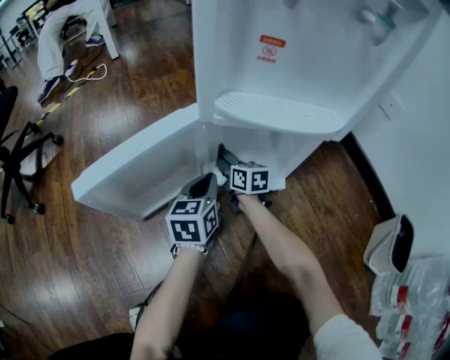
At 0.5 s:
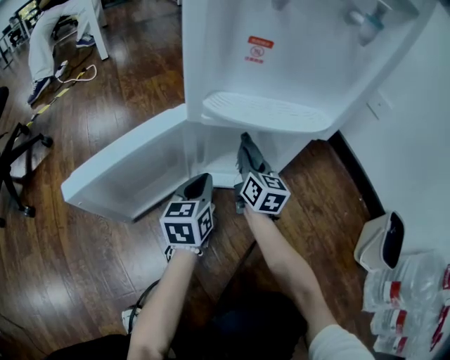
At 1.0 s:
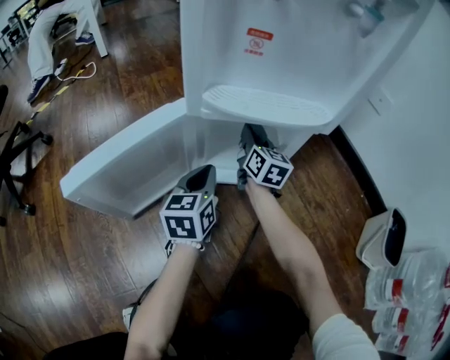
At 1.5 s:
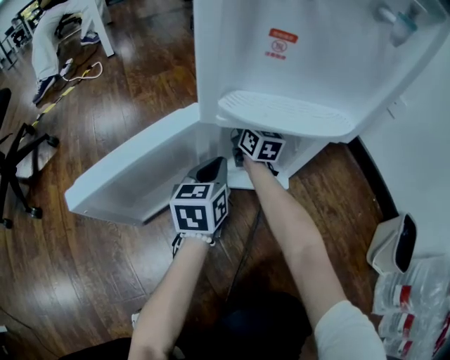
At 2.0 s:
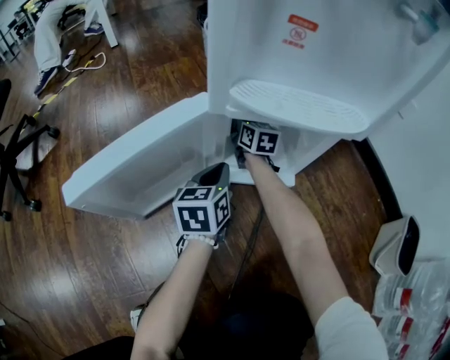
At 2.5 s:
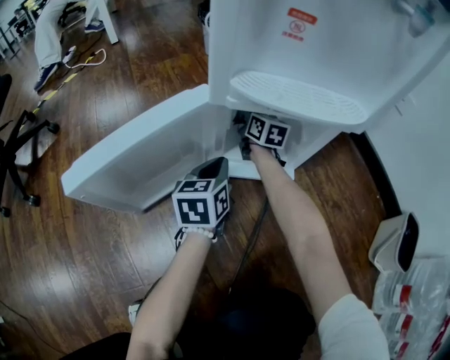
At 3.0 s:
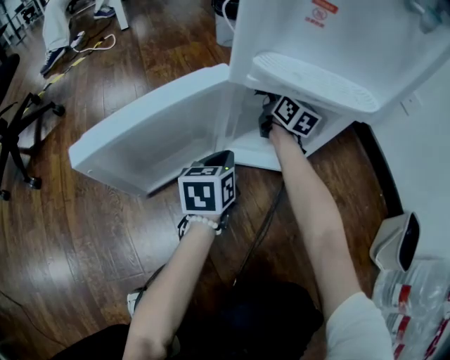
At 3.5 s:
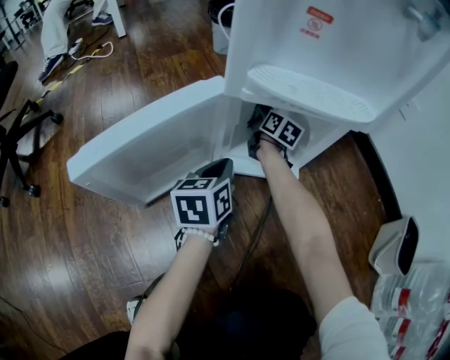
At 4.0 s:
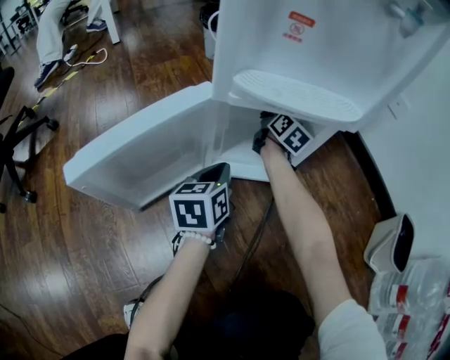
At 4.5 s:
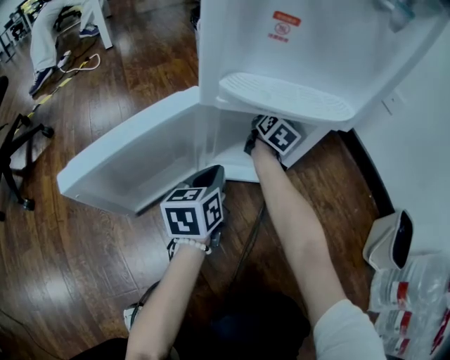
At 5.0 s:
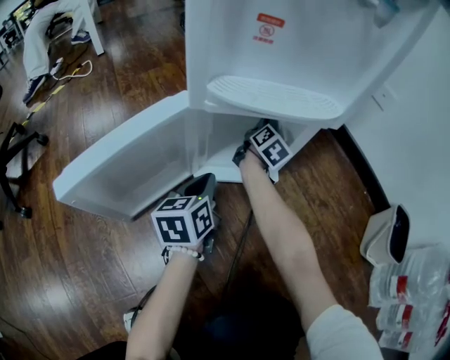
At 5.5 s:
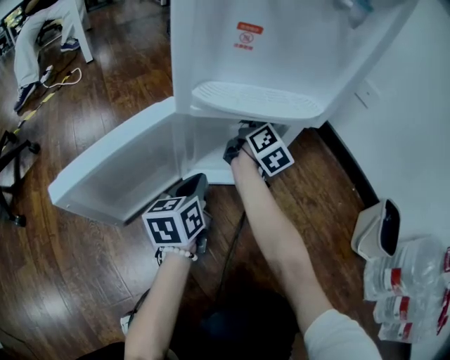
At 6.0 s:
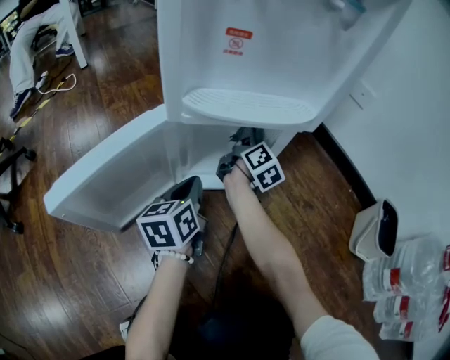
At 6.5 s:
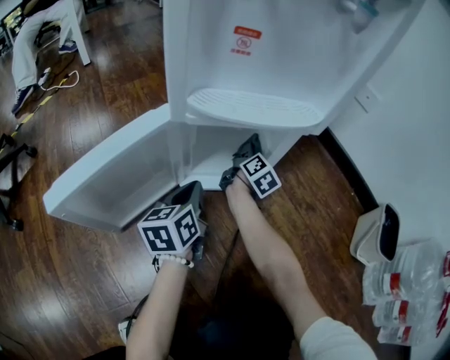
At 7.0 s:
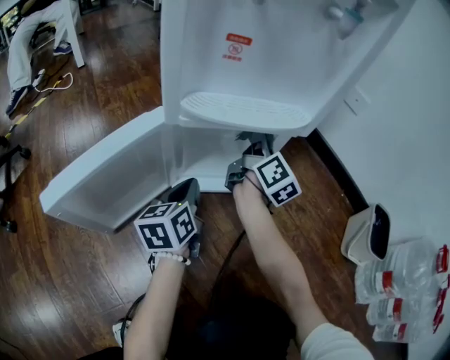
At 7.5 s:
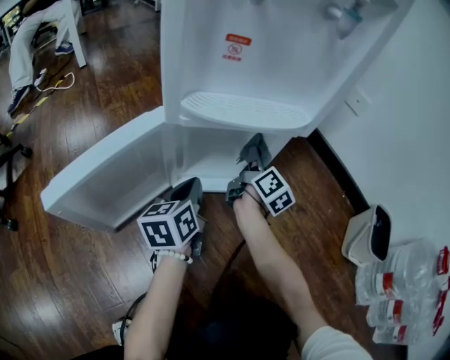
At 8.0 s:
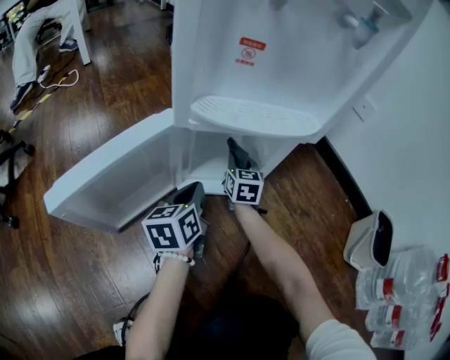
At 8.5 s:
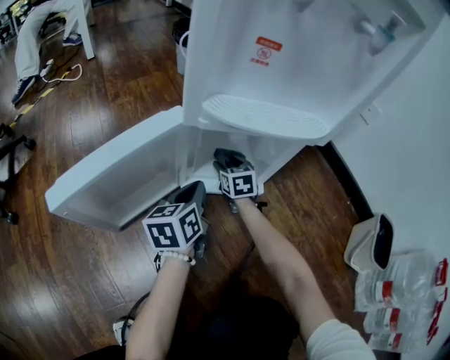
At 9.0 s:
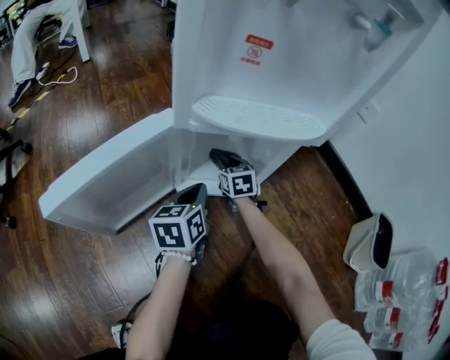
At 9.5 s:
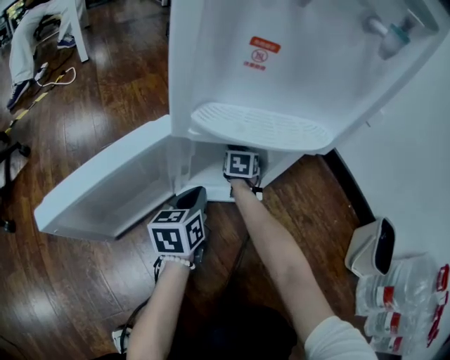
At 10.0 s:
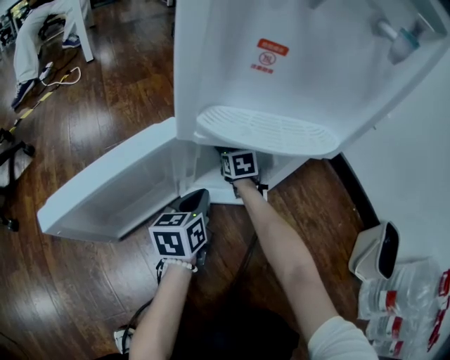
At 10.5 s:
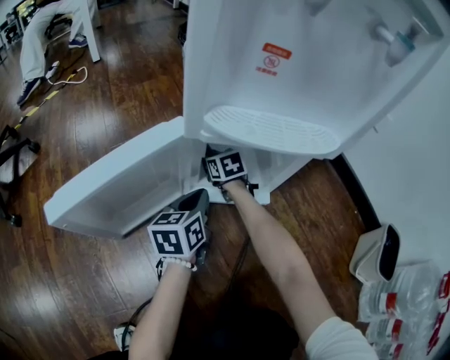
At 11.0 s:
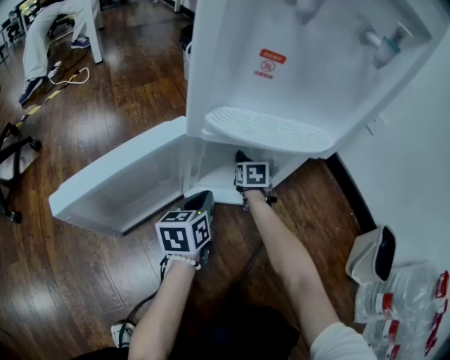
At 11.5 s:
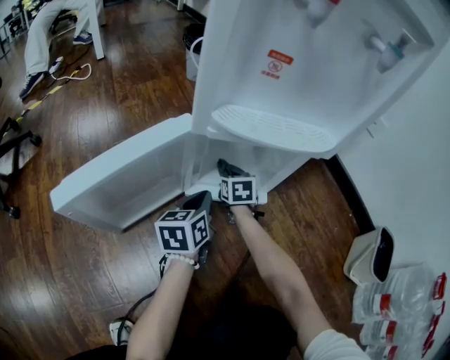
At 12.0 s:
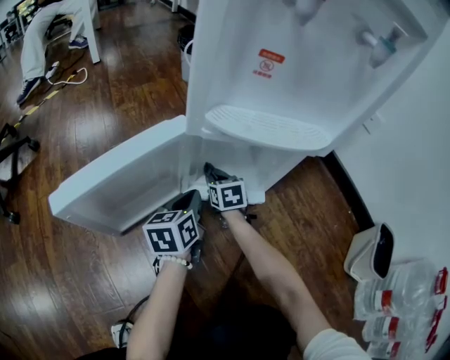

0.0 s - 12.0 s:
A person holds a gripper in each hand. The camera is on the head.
0.0 s - 2.0 s: The right gripper travels forward by about 15 cm.
2.0 s - 4.0 s: The right gripper goes about 15 cm to the right and upward, and swivels approximately 30 degrees.
4.0 s - 6.0 s: The right gripper goes up and down, approximately 10 cm each way, reversing 2 times, and rotates some 30 degrees.
6.0 s - 8.0 s: The right gripper moves up and down over about 20 cm, changing direction 2 times, and rolls counterclockwise, seen from behind, by some 50 degrees.
8.0 s - 10.0 s: The right gripper moves forward and to the left, about 10 cm, swivels roughly 20 degrees, and opens and closes again.
10.0 s - 12.0 s: The right gripper goes left and right, some 15 cm each way, reversing 2 times.

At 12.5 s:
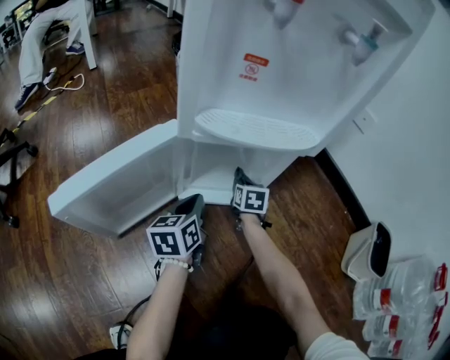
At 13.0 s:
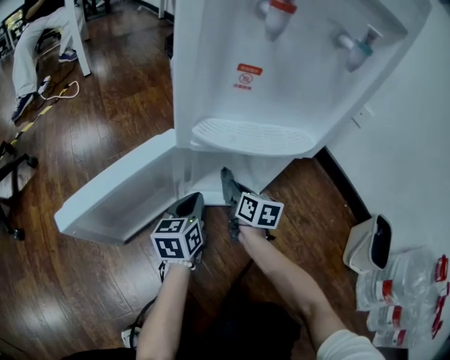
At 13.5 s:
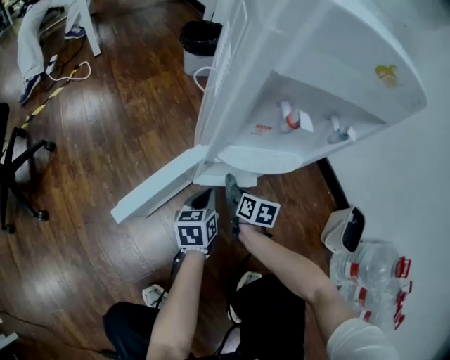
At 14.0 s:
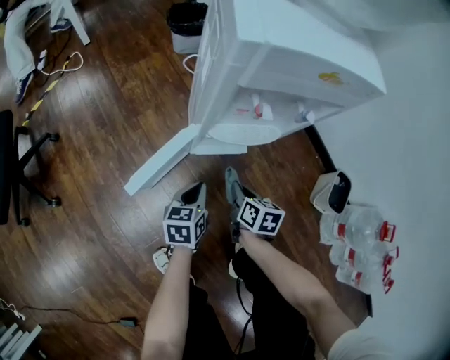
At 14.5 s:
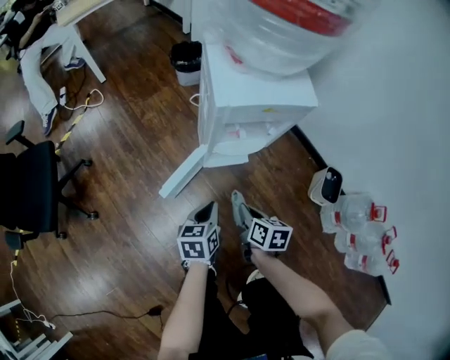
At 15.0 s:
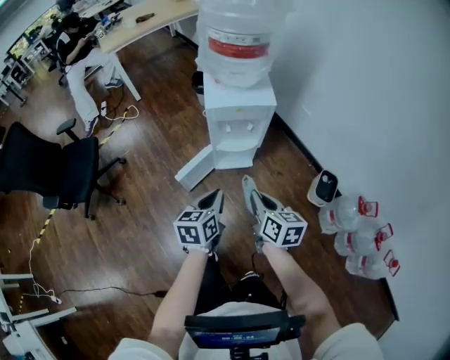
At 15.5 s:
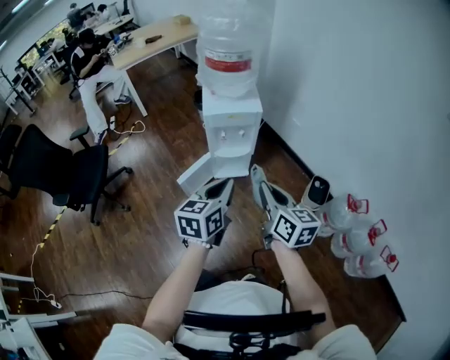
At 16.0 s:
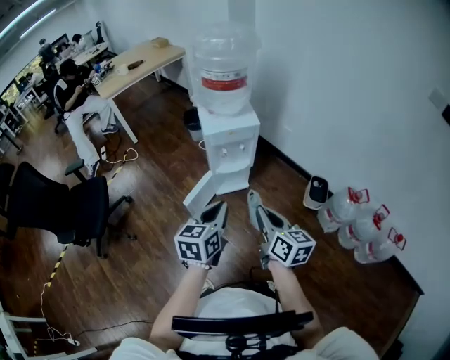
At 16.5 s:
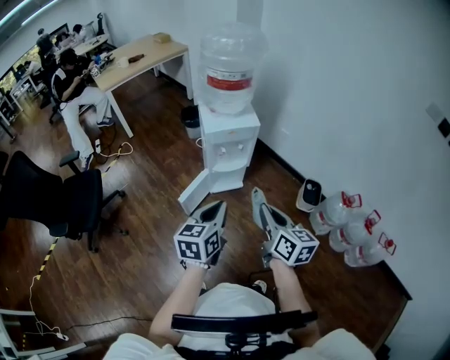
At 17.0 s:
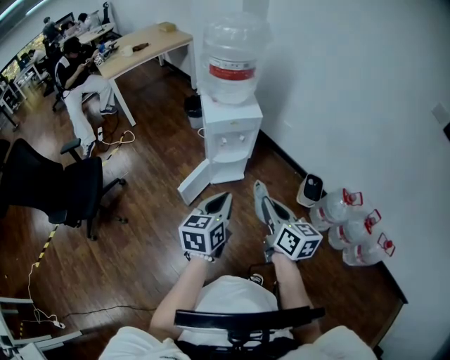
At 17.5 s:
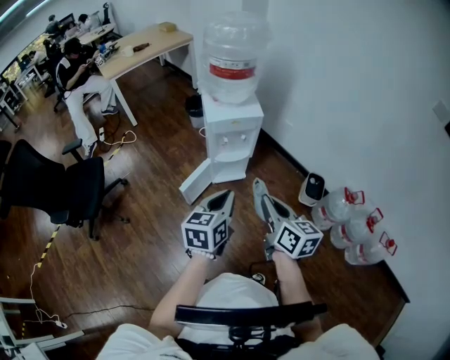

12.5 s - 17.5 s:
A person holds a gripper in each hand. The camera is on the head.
12.5 s - 15.0 s: Both grippers travel together upward and backward, some 80 cm. The right gripper turns by about 30 degrees.
15.0 s - 17.5 s: The grippers both shift upward and backward by some 20 cm.

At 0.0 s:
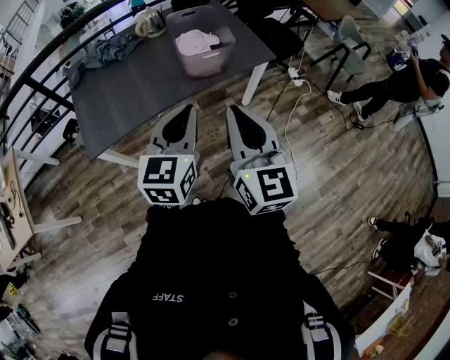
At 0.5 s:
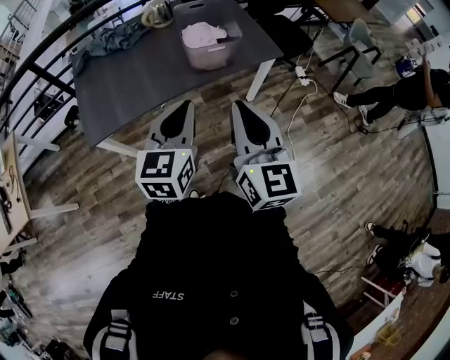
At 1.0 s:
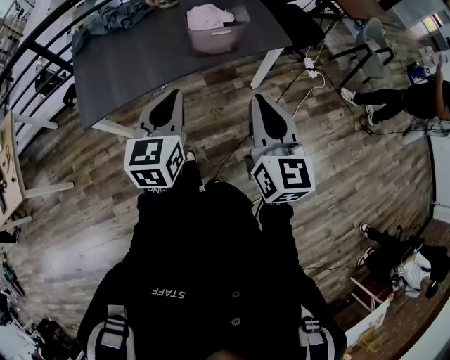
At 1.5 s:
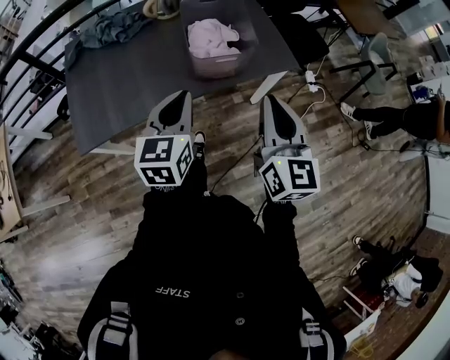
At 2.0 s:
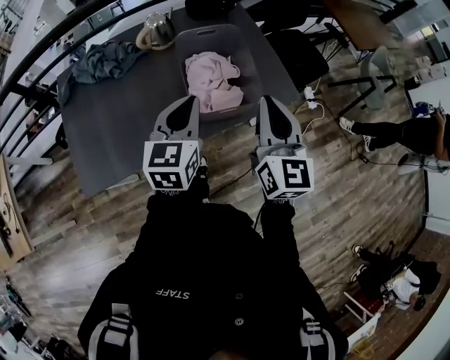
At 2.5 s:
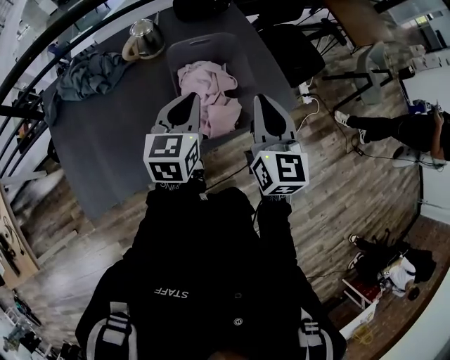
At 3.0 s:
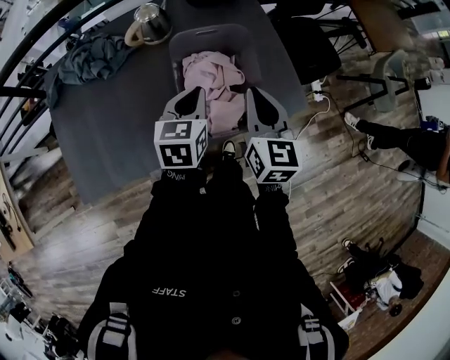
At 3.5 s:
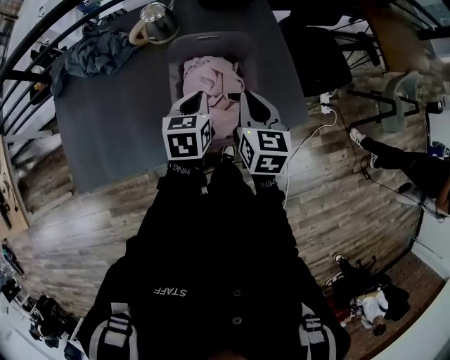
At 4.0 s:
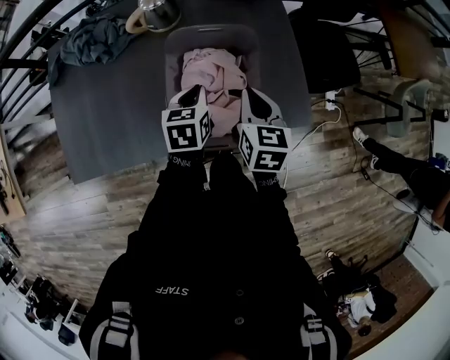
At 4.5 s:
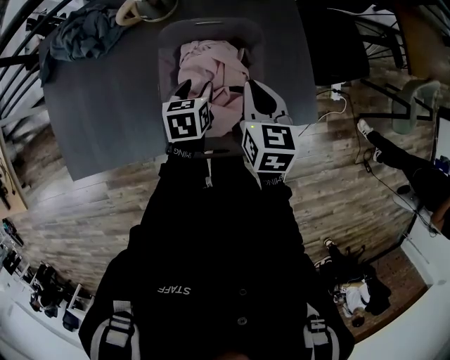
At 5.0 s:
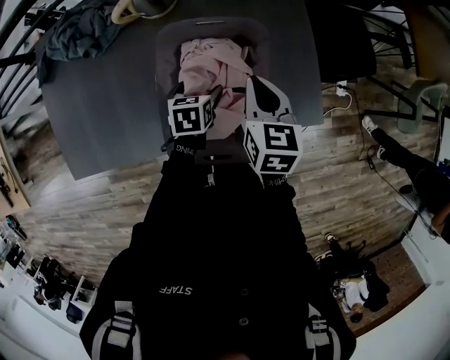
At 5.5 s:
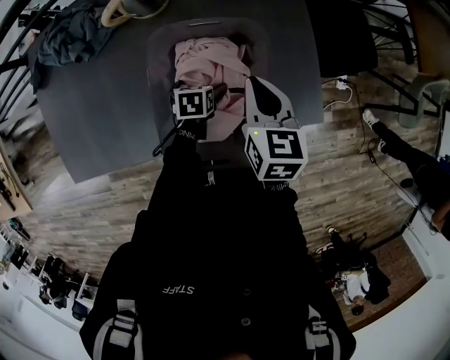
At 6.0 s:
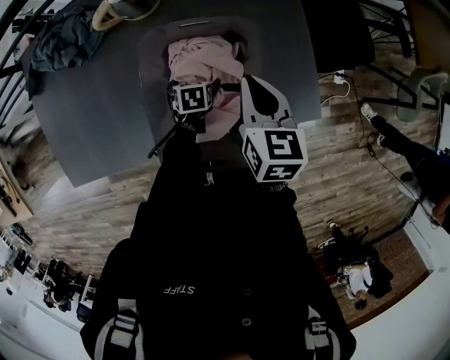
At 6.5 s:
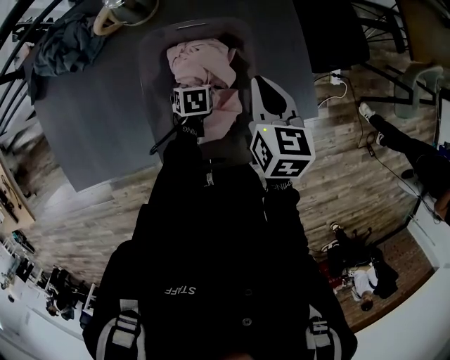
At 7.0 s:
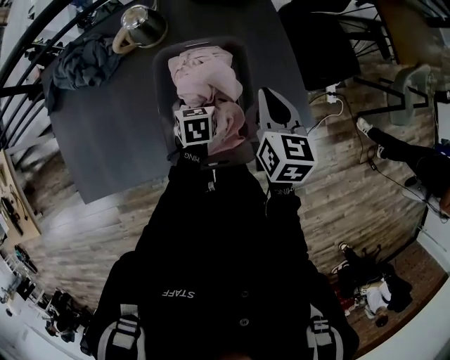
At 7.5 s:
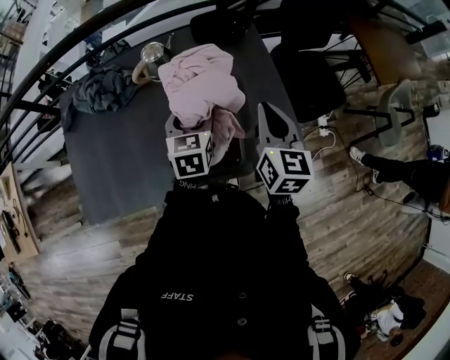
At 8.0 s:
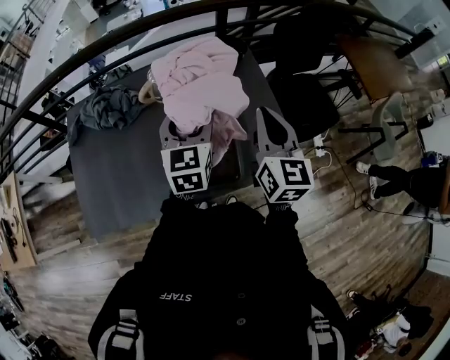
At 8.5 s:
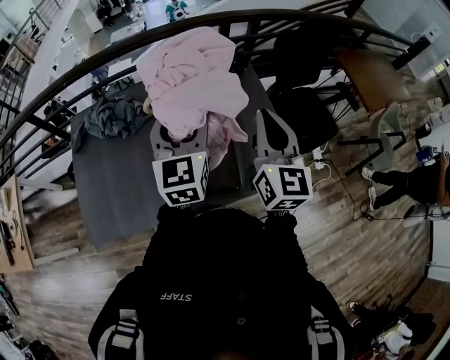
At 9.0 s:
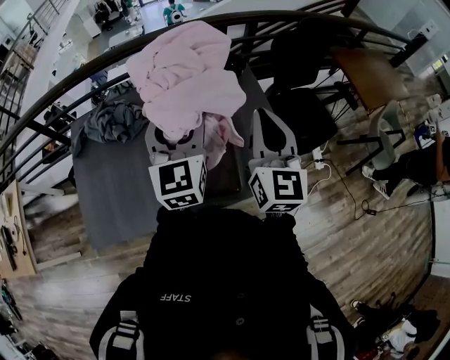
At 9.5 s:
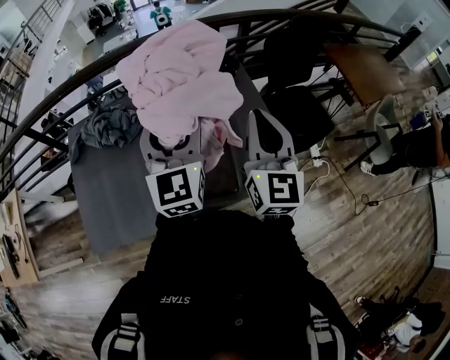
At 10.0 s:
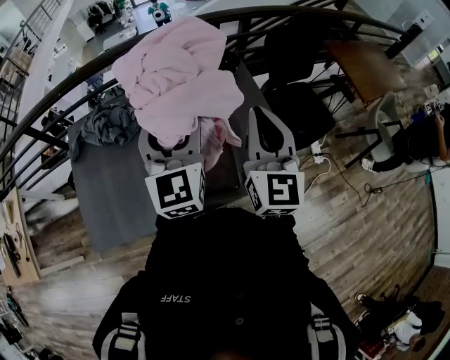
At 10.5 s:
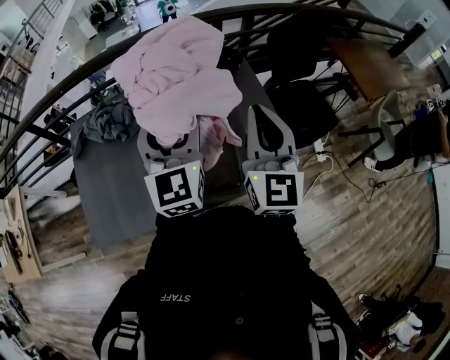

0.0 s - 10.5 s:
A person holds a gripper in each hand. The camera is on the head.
0.0 s - 2.0 s: The two grippers go roughly 35 cm forward.
2.0 s - 4.0 s: The grippers both shift forward and downward by approximately 30 cm. The left gripper swivels about 30 degrees. Meanwhile the right gripper tilts its fingers about 30 degrees downward.
4.0 s - 6.5 s: The right gripper shifts roughly 5 cm forward. Meanwhile the left gripper travels downward by approximately 20 cm, changes its angle by about 30 degrees, and opens.
6.5 s - 8.5 s: The left gripper goes approximately 50 cm upward, and tilts its fingers roughly 70 degrees upward; the right gripper shifts roughly 30 cm upward, and angles its fingers upward, by roughly 40 degrees.
8.5 s - 10.5 s: The grippers stay close to where they were, moving slightly.
